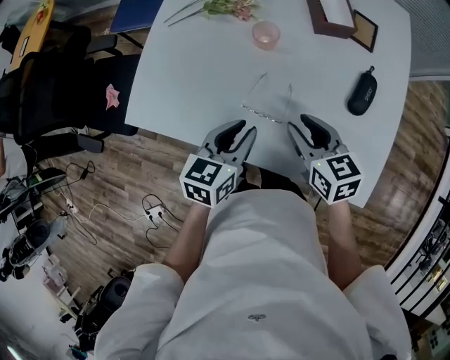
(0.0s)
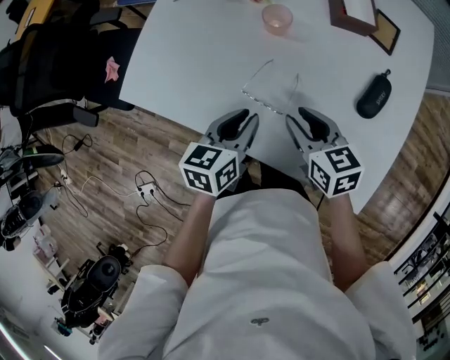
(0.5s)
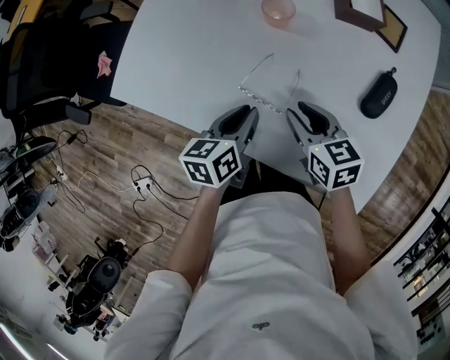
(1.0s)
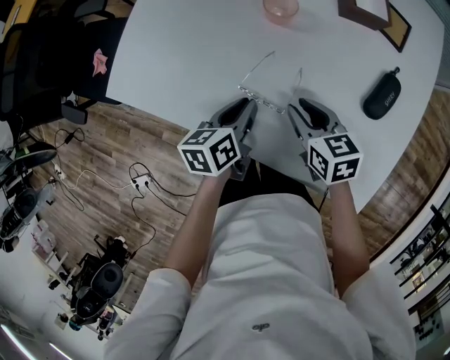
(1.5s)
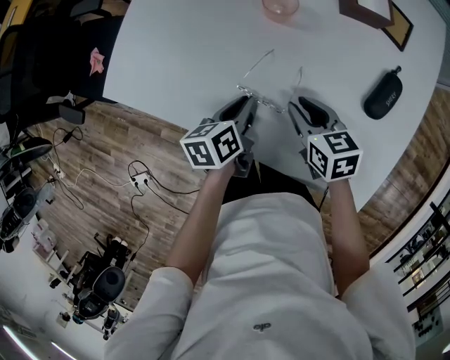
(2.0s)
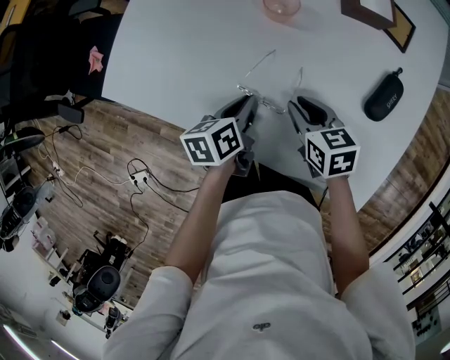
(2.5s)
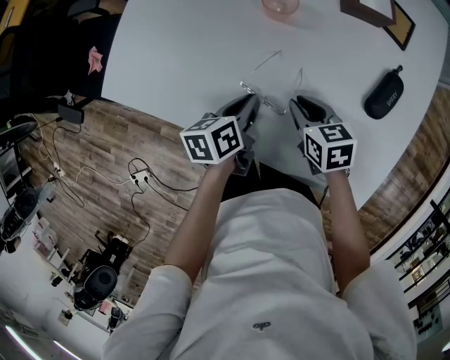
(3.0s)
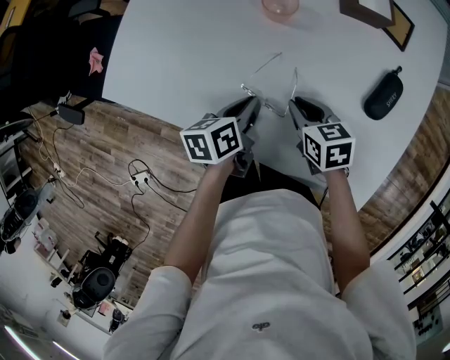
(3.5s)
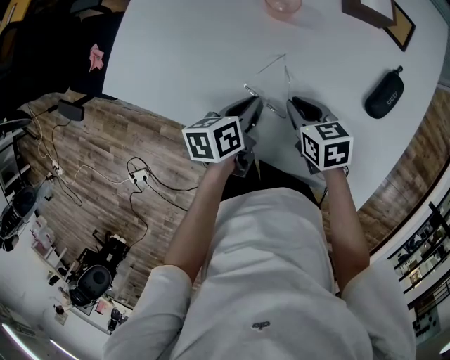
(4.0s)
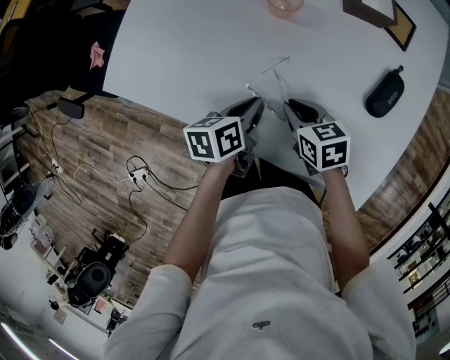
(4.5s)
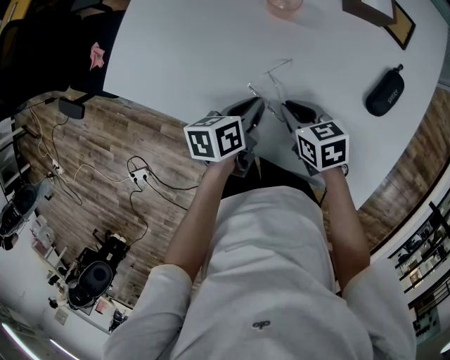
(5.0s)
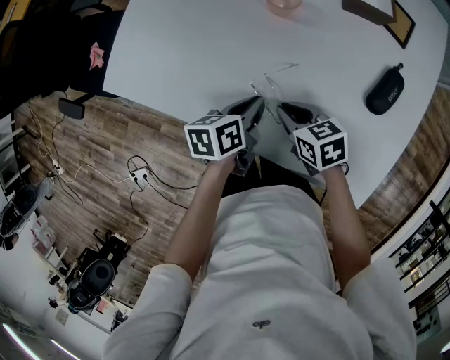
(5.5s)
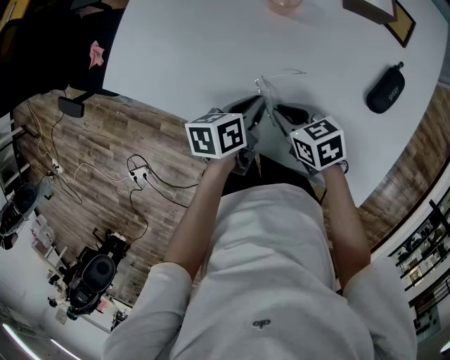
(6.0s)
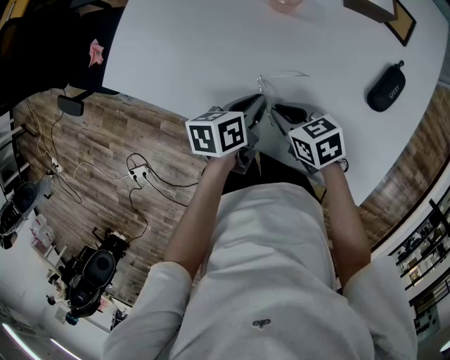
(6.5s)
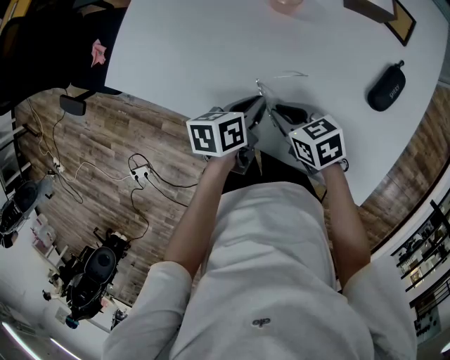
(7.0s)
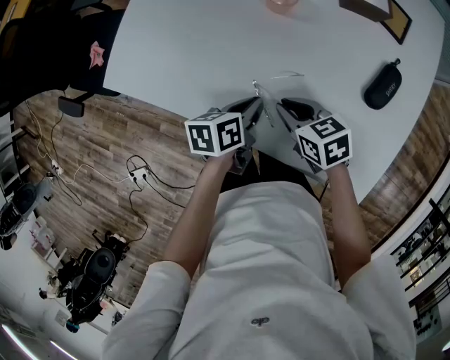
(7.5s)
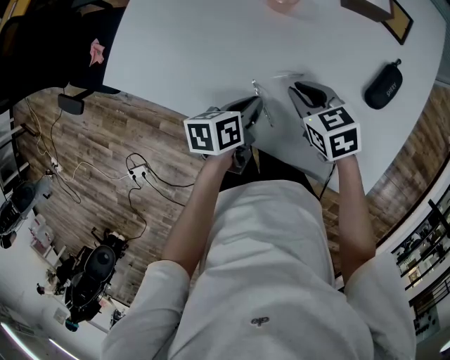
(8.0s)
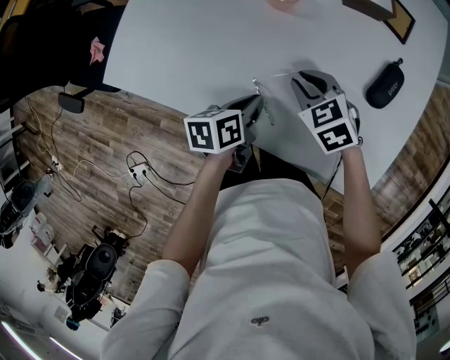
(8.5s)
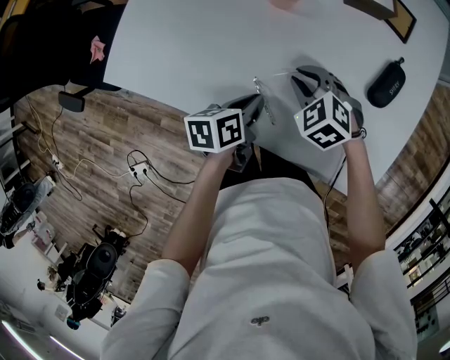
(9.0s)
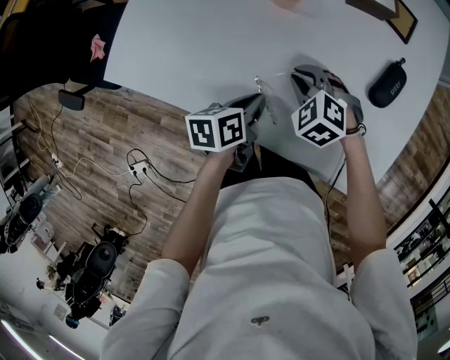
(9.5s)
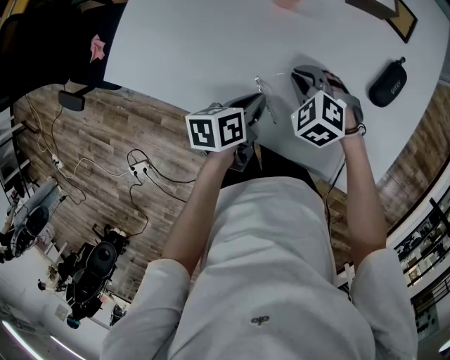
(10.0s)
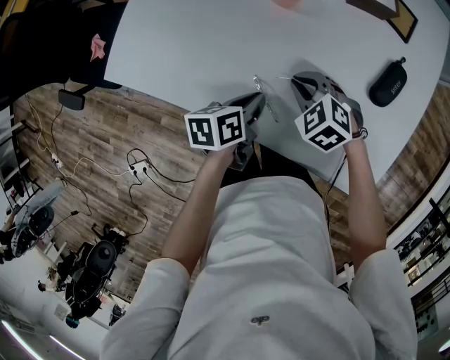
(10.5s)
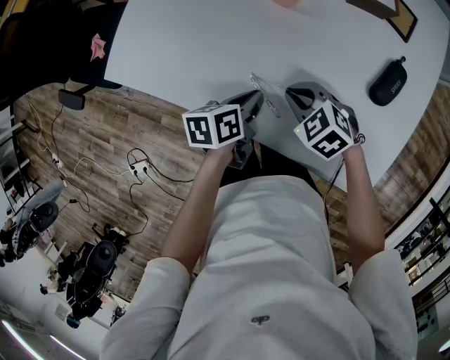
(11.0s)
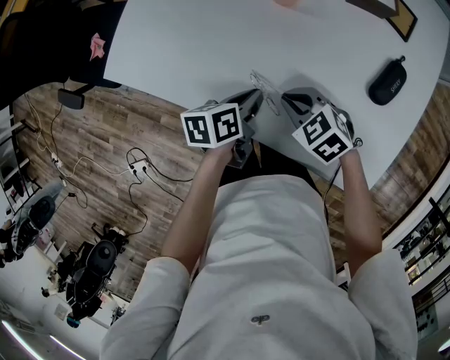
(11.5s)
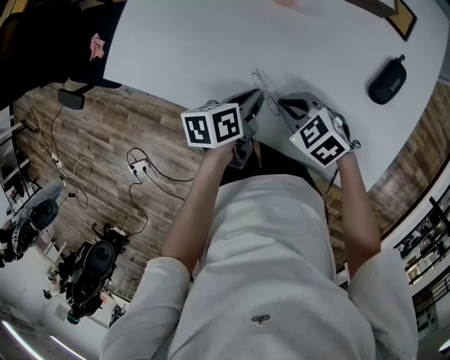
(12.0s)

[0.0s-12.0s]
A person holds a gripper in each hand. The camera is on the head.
0.0s to 2.0s: Both grippers travel together downward, some 10 cm. The left gripper changes its angle by roughly 40 degrees.
2.0s to 4.0s: There are only small adjustments of the grippers.
4.0s to 6.0s: The right gripper moves approximately 5 cm.
6.0s to 8.0s: The right gripper changes place by roughly 5 cm.
8.0s to 10.0s: The right gripper twists about 40 degrees counterclockwise, seen from behind.
10.0s to 12.0s: The right gripper is displaced backward by roughly 10 cm, and changes its angle by roughly 30 degrees.

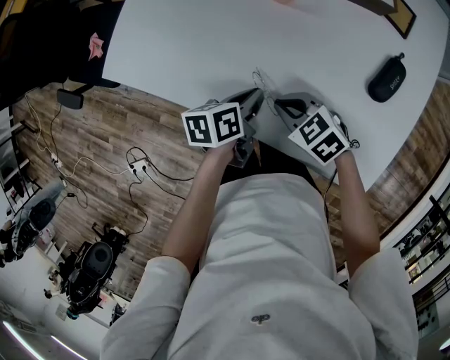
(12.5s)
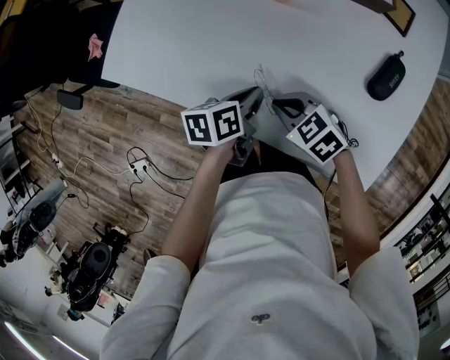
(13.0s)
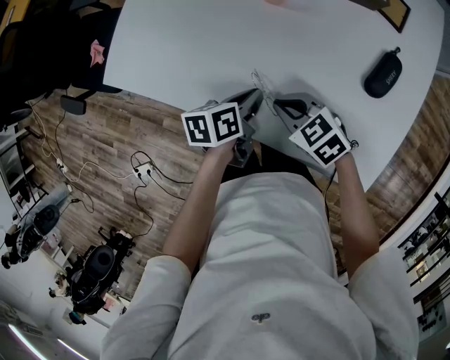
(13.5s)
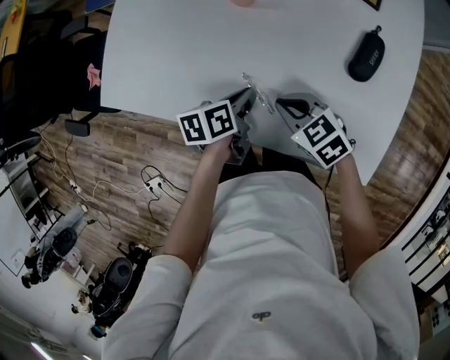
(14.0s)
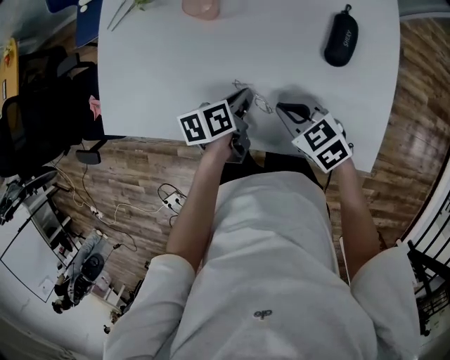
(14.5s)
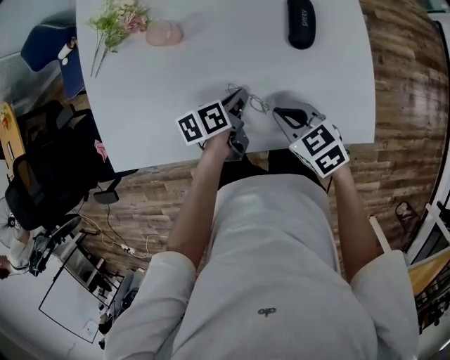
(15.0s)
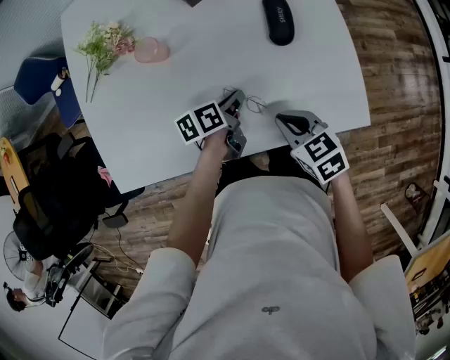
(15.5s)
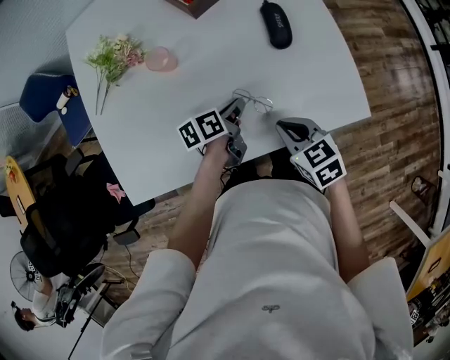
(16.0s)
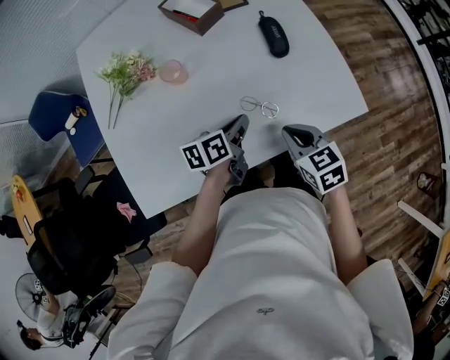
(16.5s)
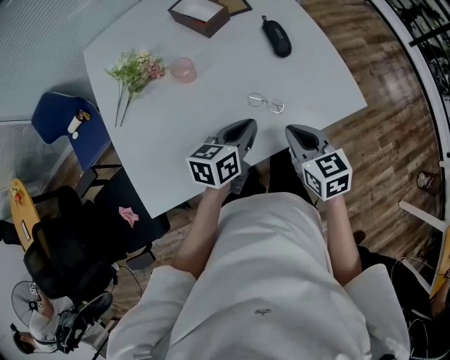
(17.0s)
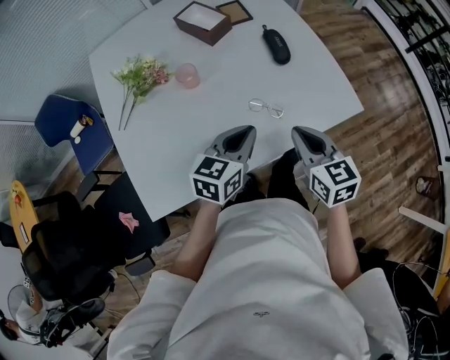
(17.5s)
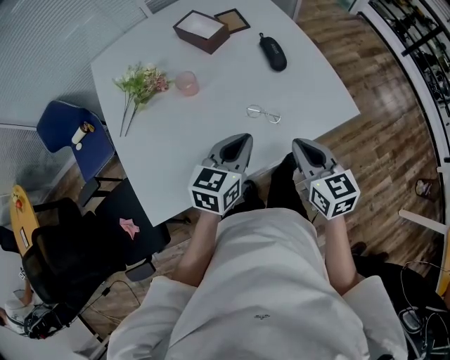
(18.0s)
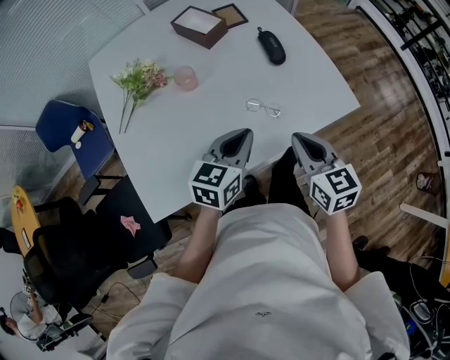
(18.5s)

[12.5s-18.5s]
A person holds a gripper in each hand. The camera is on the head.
12.5s to 14.5s: Both grippers travel together to the right, roughly 10 cm. The right gripper rotates roughly 30 degrees.
14.5s to 16.5s: The right gripper shifts by about 10 cm, and rotates about 50 degrees. The left gripper is displaced upward by roughly 5 cm, and swivels approximately 30 degrees.
16.5s to 18.5s: Both grippers move upward and backward, approximately 15 cm. The right gripper turns by approximately 20 degrees. Meanwhile the left gripper twists some 40 degrees clockwise, seen from behind.

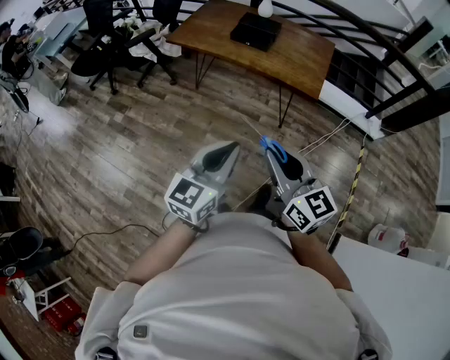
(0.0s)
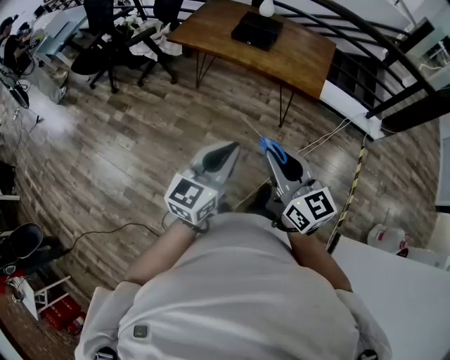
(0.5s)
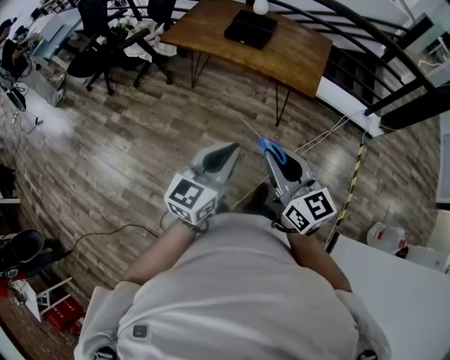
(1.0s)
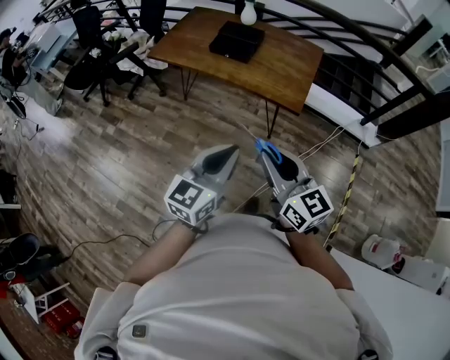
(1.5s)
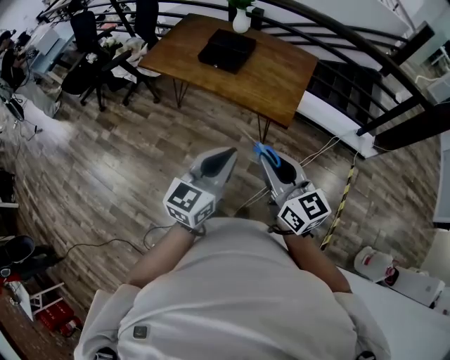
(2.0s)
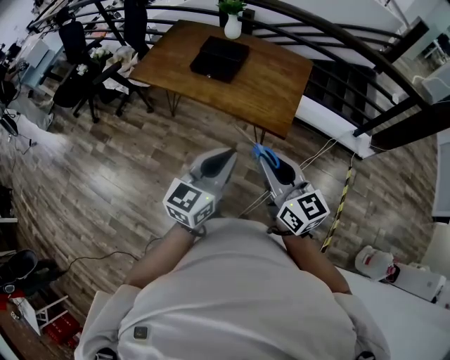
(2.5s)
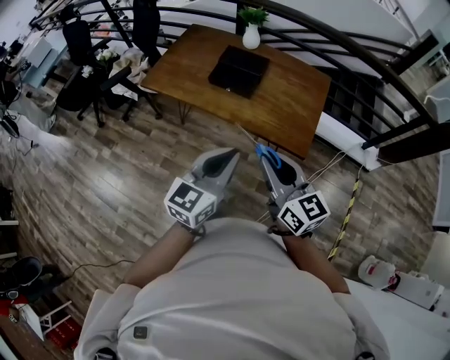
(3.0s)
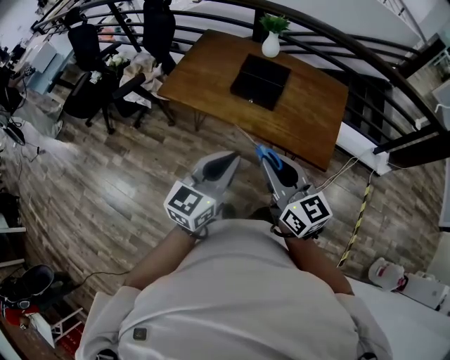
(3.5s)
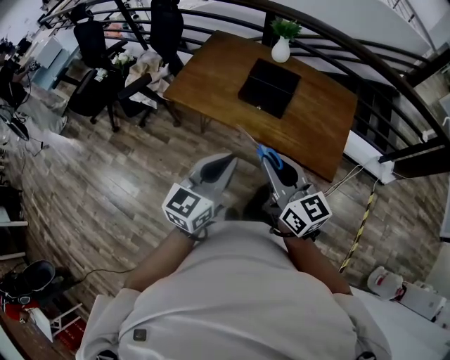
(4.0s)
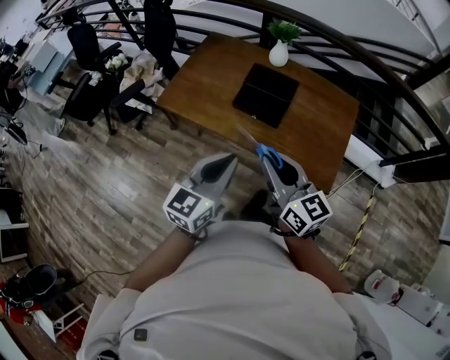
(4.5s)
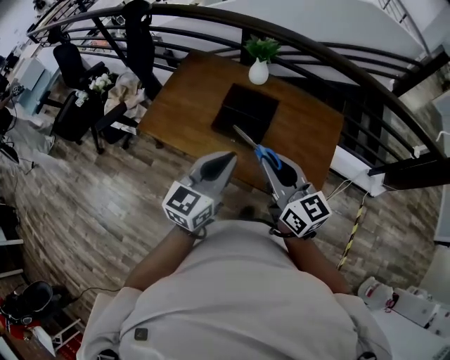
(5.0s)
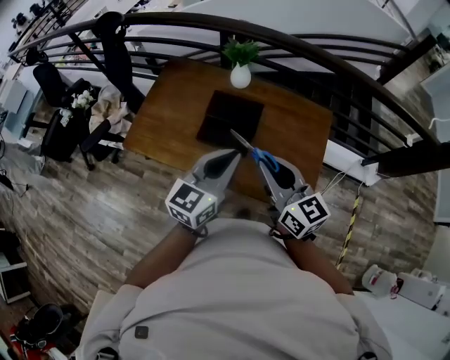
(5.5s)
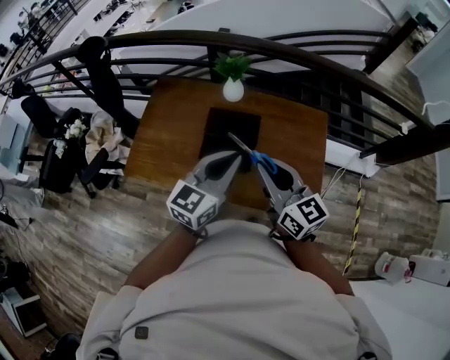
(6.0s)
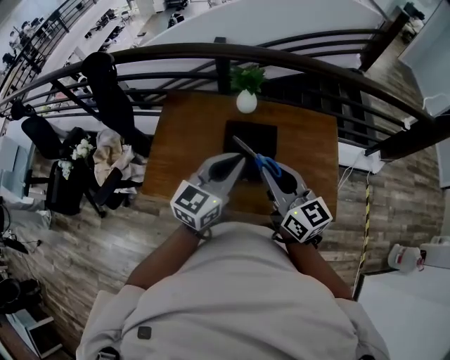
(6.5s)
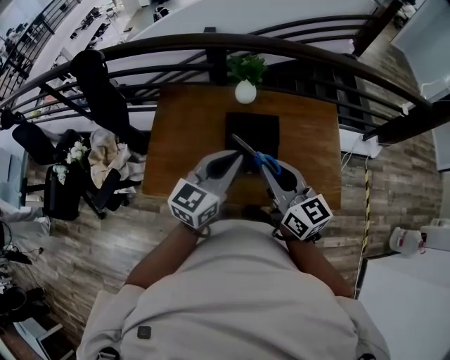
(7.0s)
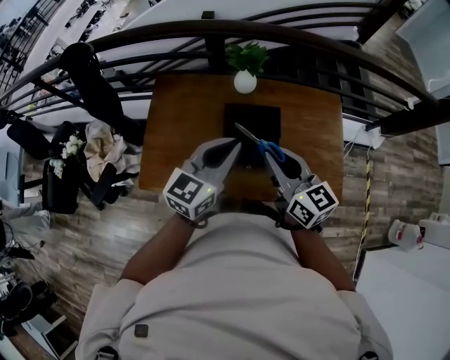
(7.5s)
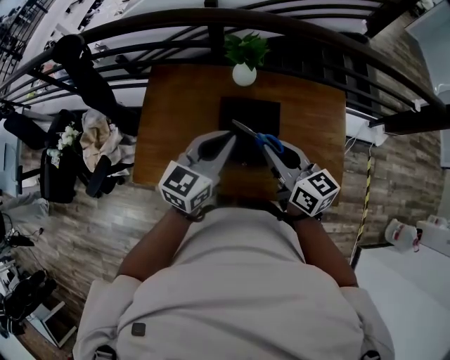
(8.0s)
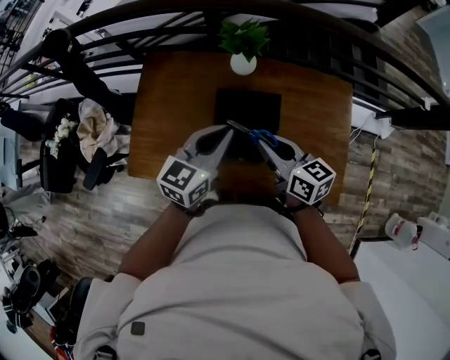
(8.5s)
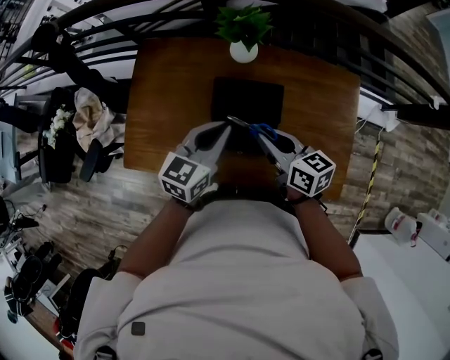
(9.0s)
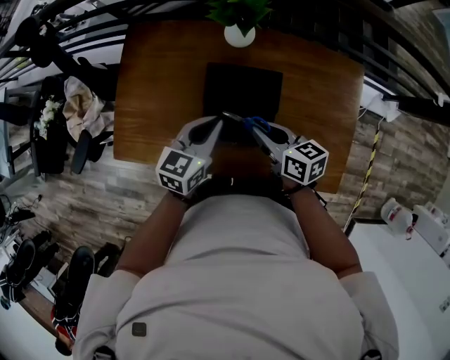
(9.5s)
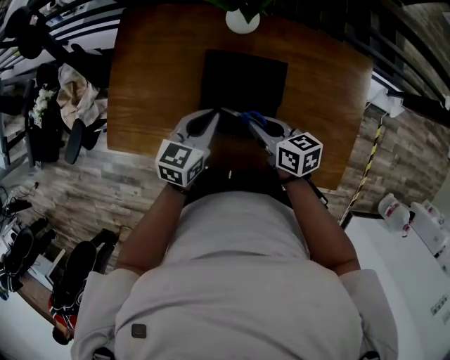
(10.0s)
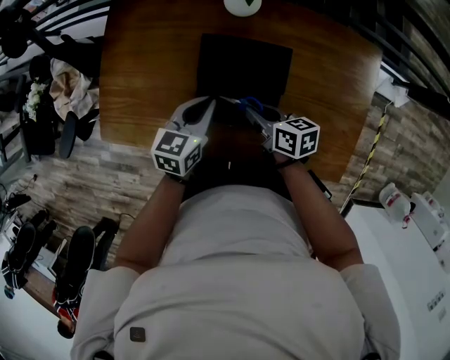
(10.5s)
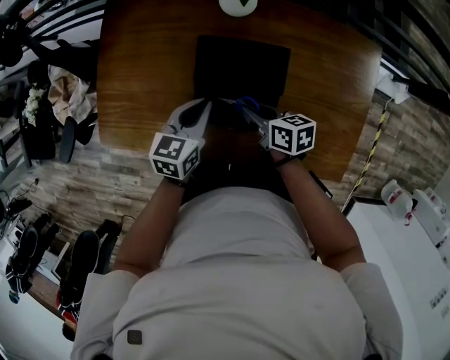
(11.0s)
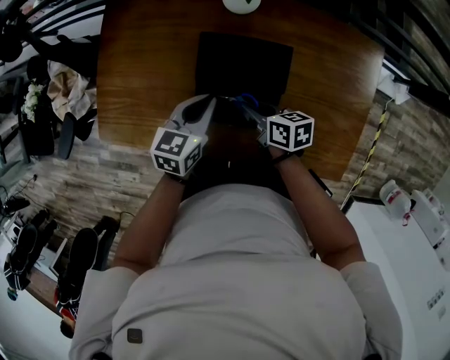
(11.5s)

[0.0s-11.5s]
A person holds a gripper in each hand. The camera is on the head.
0.0s to 2.0s: The grippers both shift to the right and forward by about 30 cm.
2.0s to 4.0s: The grippers both shift forward and to the left by approximately 40 cm.
4.0s to 6.0s: Both grippers move forward, approximately 35 cm.
6.0s to 7.5s: The grippers both shift to the left and forward by about 15 cm.
7.5s to 9.5s: The two grippers go some 25 cm downward and forward. The right gripper turns by roughly 30 degrees. The left gripper turns by approximately 20 degrees.
9.5s to 11.5s: Both grippers move downward, about 10 cm.
